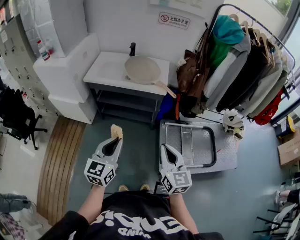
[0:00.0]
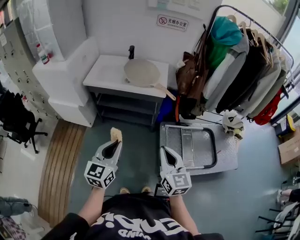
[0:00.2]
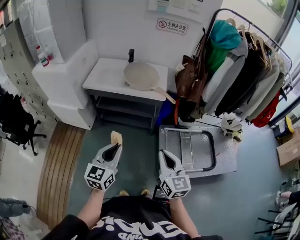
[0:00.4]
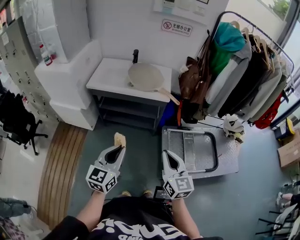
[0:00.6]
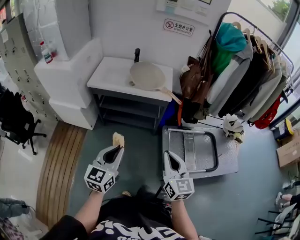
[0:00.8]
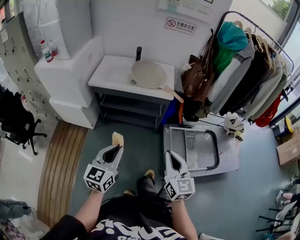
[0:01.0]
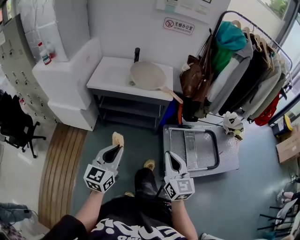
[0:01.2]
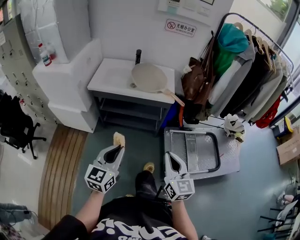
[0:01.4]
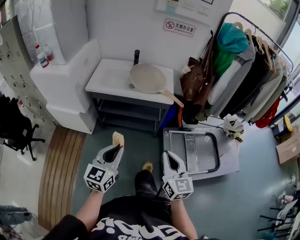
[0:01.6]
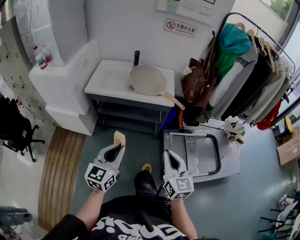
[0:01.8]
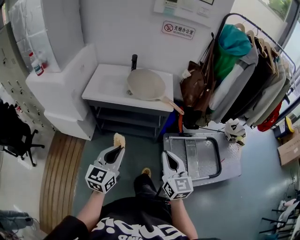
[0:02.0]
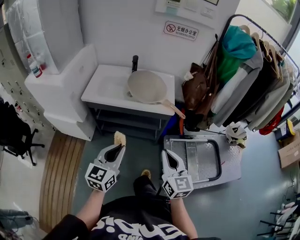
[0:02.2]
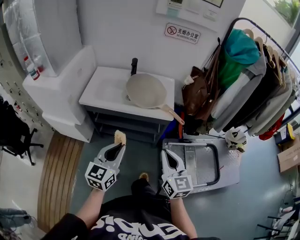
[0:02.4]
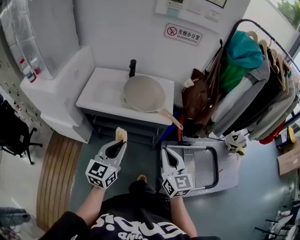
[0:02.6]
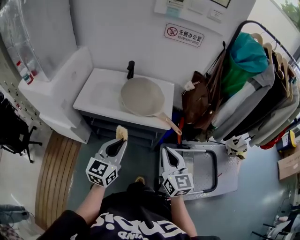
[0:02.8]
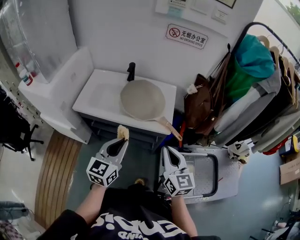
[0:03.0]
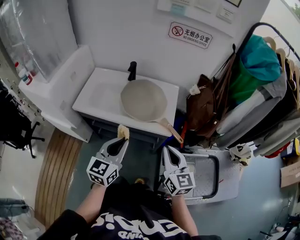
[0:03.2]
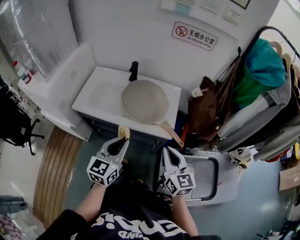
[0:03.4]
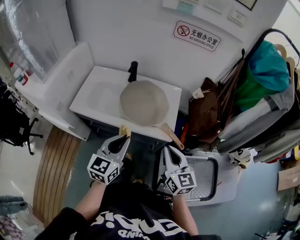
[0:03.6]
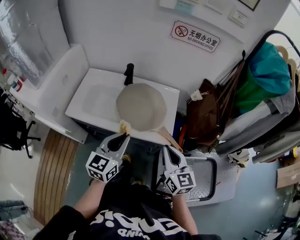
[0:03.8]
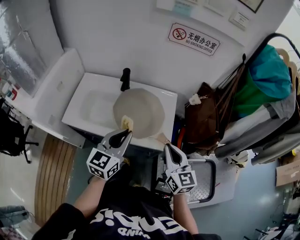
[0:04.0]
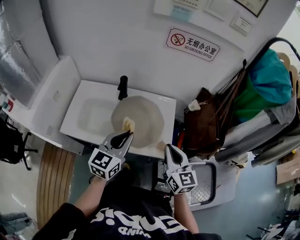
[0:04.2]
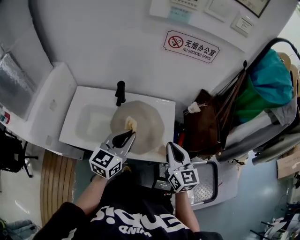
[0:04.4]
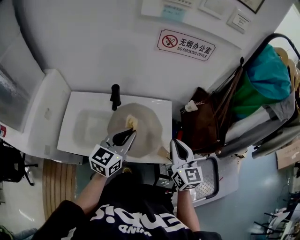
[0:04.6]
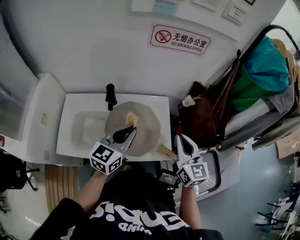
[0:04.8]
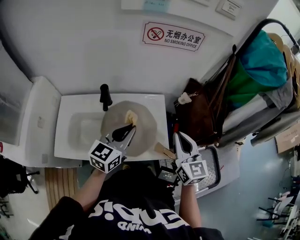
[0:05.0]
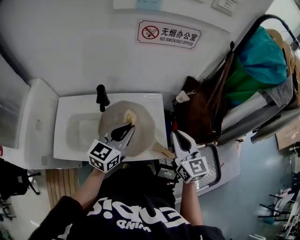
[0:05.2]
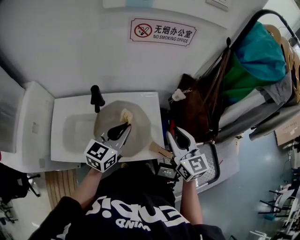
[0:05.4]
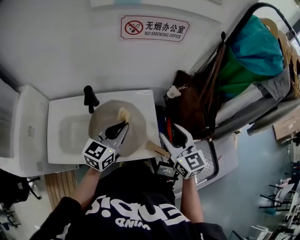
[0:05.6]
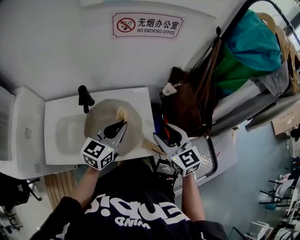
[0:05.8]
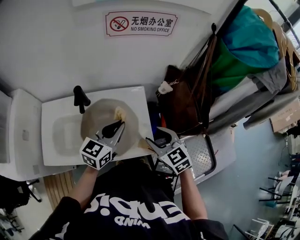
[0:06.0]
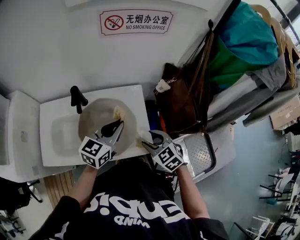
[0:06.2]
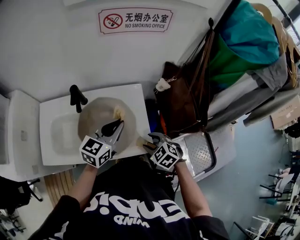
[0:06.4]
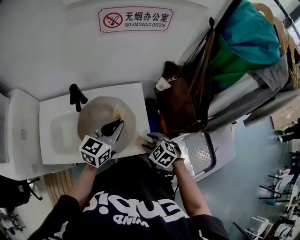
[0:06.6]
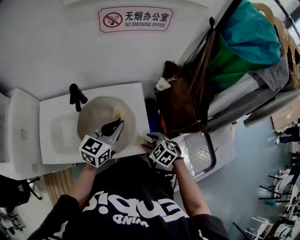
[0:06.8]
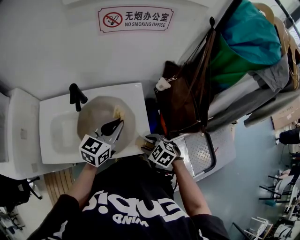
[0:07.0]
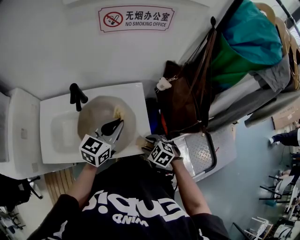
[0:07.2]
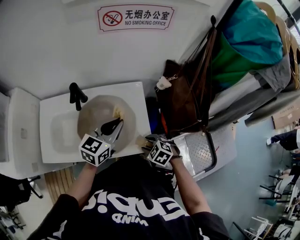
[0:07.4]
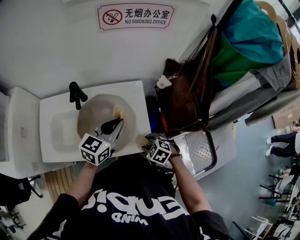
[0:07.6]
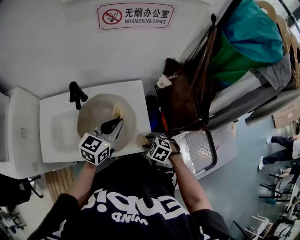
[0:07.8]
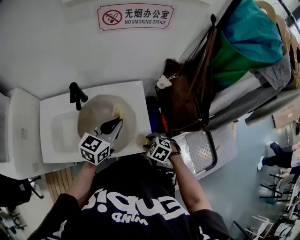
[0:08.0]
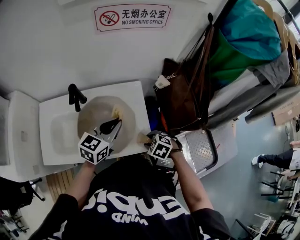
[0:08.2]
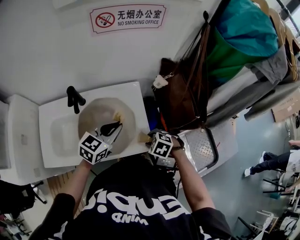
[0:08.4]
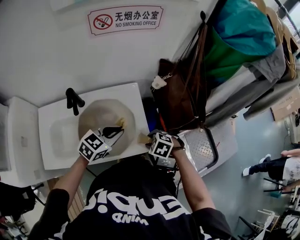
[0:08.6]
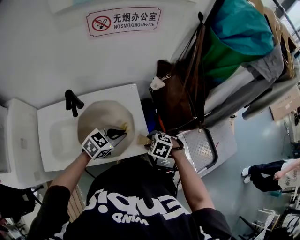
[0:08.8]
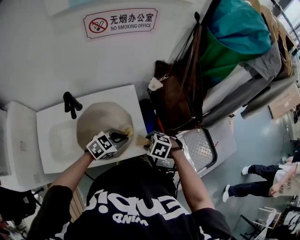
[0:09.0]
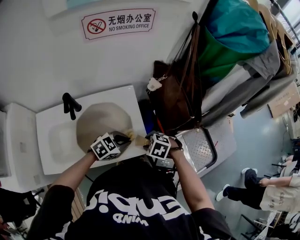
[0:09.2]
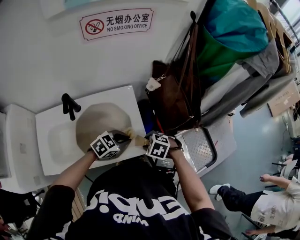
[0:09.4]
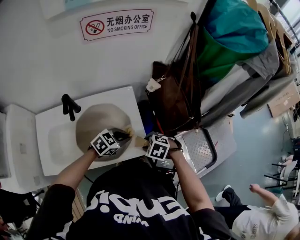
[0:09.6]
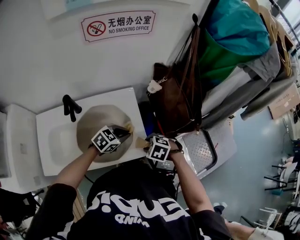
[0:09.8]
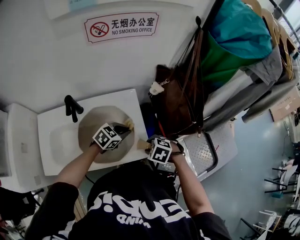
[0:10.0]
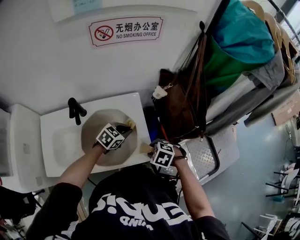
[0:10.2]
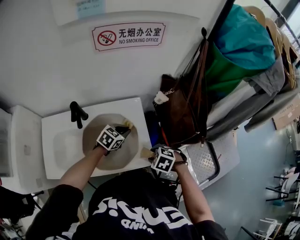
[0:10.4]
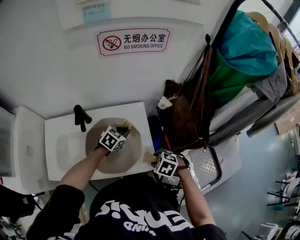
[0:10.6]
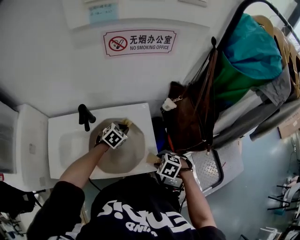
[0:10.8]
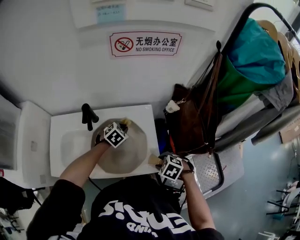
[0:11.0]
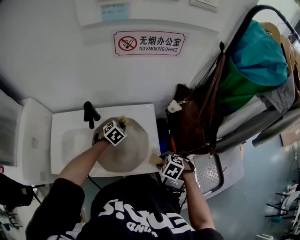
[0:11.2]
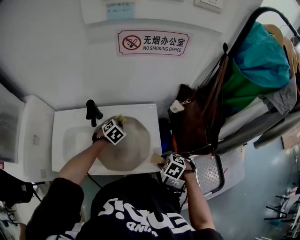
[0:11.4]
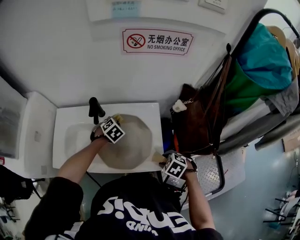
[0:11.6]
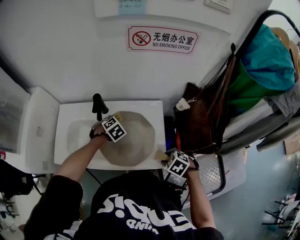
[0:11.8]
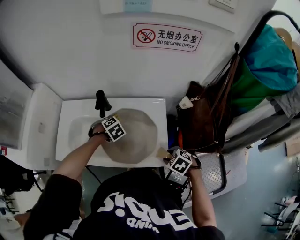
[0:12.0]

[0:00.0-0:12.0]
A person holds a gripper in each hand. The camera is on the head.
0:00.0 to 0:01.6: The two grippers go roughly 5 cm to the left.
0:01.6 to 0:03.0: Both grippers travel together forward, about 30 cm.
0:03.0 to 0:04.4: Both grippers move forward, roughly 25 cm.
0:04.4 to 0:06.0: The right gripper travels downward by roughly 5 cm, changes its angle by roughly 20 degrees, and opens. The left gripper goes about 10 cm forward and to the right.
0:06.0 to 0:07.6: The right gripper shifts about 20 cm downward, and tips its fingers downward by some 30 degrees.
0:07.6 to 0:09.0: The left gripper moves downward, about 10 cm, and turns by approximately 40 degrees.
0:09.0 to 0:10.4: The left gripper moves about 10 cm.
0:10.4 to 0:12.0: The left gripper shifts by some 15 cm, and turns by approximately 40 degrees.

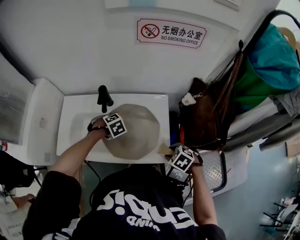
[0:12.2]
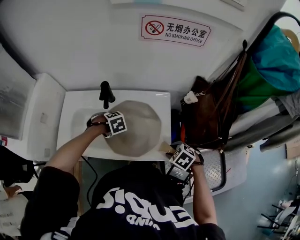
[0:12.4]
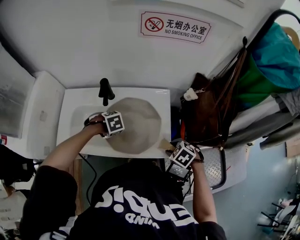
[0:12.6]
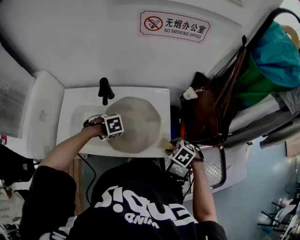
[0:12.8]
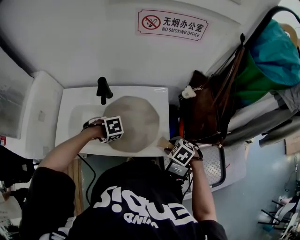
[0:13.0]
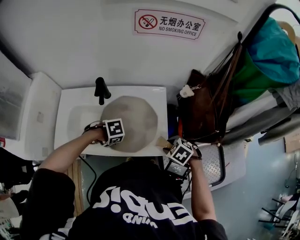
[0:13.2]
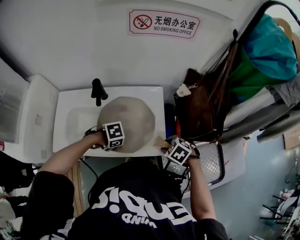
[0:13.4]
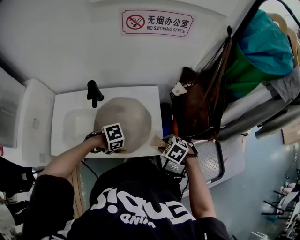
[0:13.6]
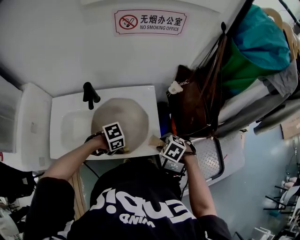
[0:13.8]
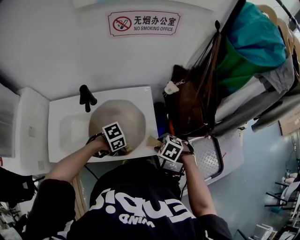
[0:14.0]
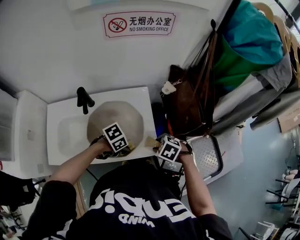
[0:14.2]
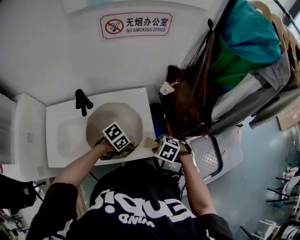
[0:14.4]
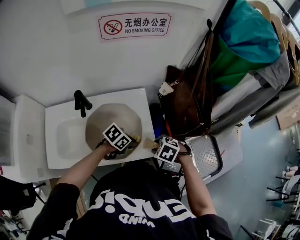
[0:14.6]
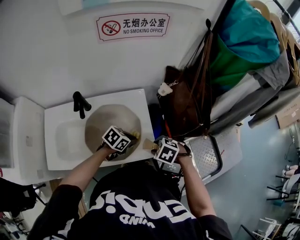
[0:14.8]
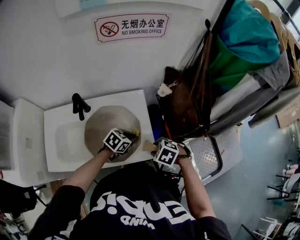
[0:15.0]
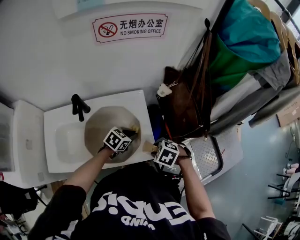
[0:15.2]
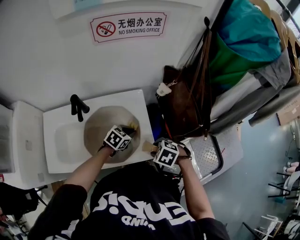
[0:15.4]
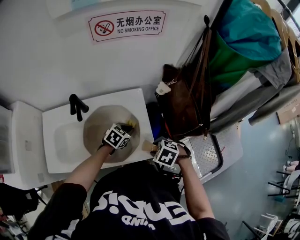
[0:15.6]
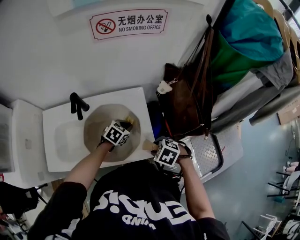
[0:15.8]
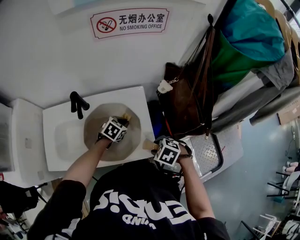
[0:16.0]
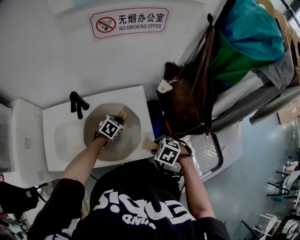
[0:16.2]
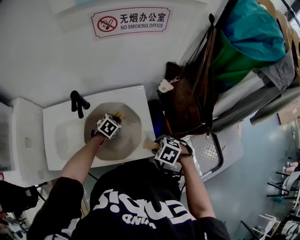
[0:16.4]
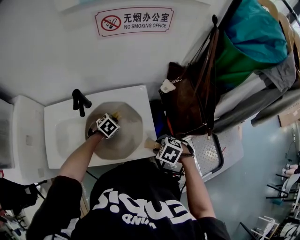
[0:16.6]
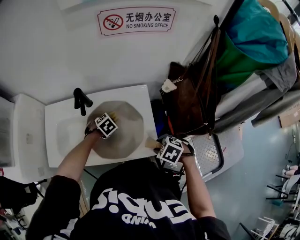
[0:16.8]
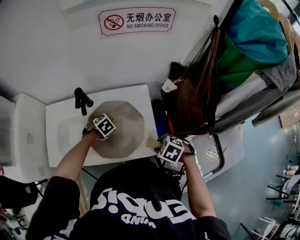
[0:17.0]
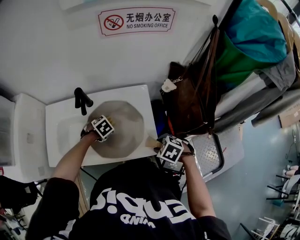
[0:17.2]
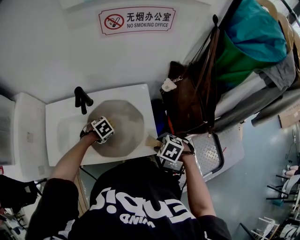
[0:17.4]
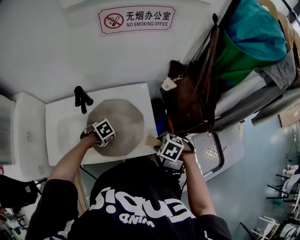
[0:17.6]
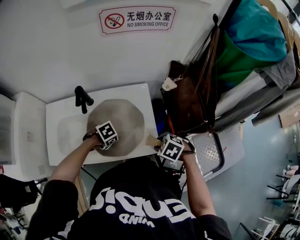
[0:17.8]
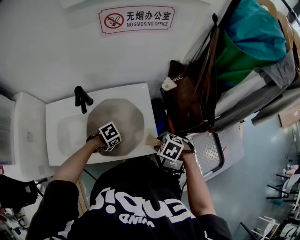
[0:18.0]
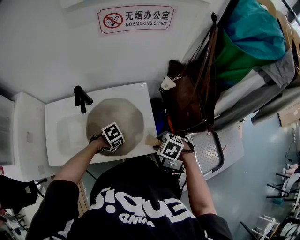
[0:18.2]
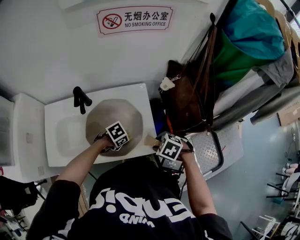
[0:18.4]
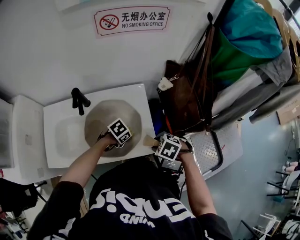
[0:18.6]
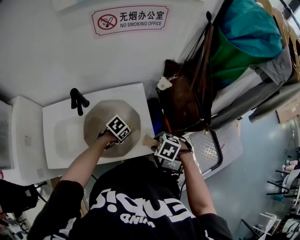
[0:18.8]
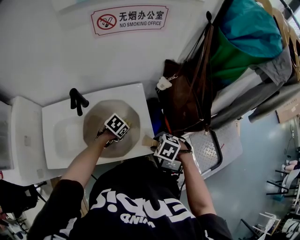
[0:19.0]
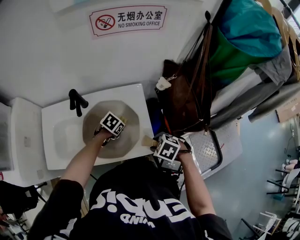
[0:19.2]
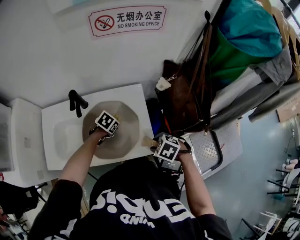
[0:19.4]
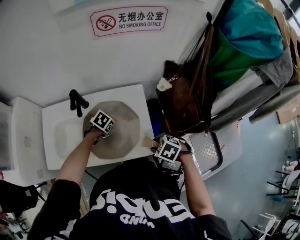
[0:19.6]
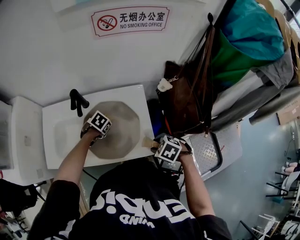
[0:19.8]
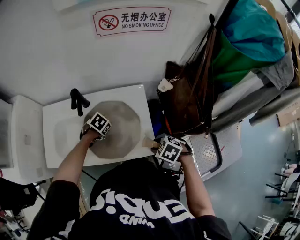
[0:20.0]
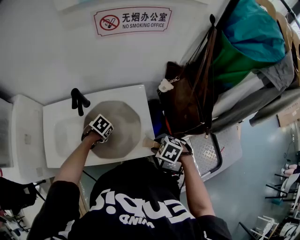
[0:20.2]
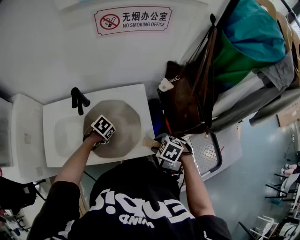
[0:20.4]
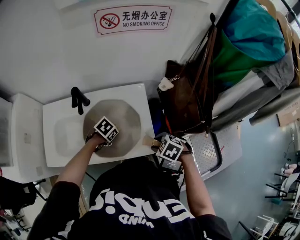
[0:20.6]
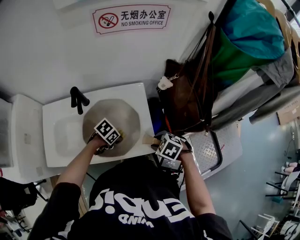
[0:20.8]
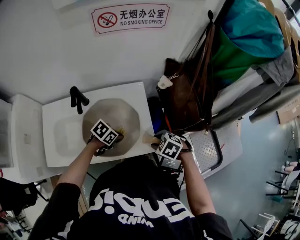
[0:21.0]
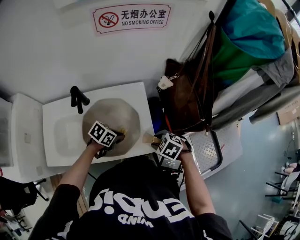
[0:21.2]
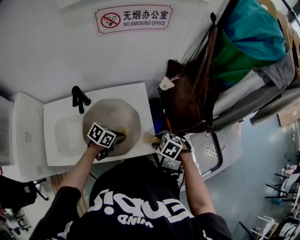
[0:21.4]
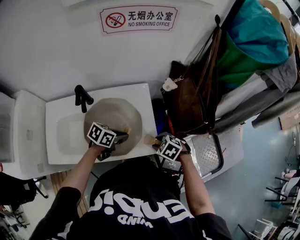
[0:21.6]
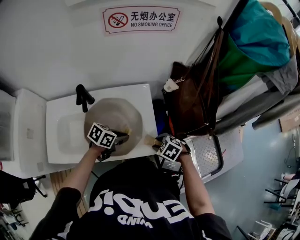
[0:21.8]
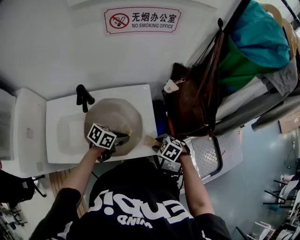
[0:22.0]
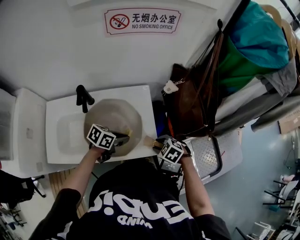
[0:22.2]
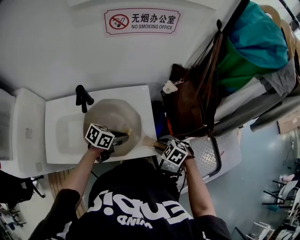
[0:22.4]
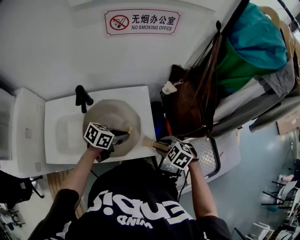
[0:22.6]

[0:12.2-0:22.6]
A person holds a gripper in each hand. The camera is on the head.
0:12.2 to 0:13.6: The left gripper shifts by roughly 20 cm, and changes its angle by roughly 40 degrees.
0:13.6 to 0:15.2: The left gripper ends up approximately 20 cm from where it was, and swivels approximately 50 degrees.
0:15.2 to 0:16.6: The left gripper shifts by about 15 cm, and rotates roughly 30 degrees.
0:16.6 to 0:18.2: The left gripper ends up about 15 cm from where it was, and swivels about 30 degrees.
0:18.2 to 0:19.6: The left gripper moves roughly 15 cm, and turns by approximately 30 degrees.
0:19.6 to 0:21.2: The left gripper changes place by about 10 cm, and changes its angle by some 30 degrees.
0:21.2 to 0:22.6: The left gripper goes about 10 cm upward.

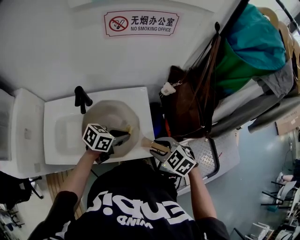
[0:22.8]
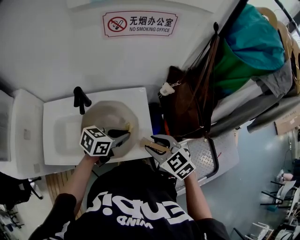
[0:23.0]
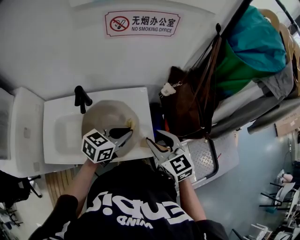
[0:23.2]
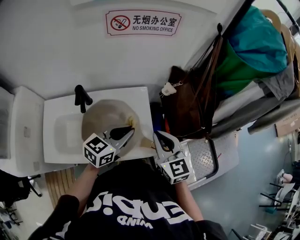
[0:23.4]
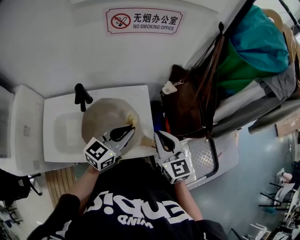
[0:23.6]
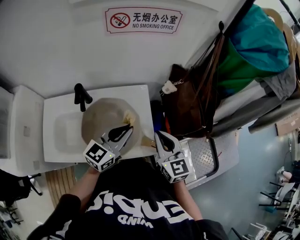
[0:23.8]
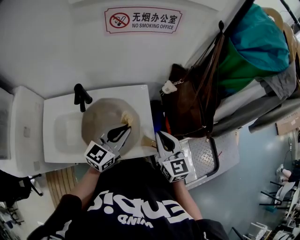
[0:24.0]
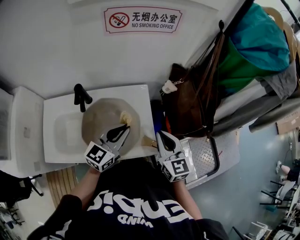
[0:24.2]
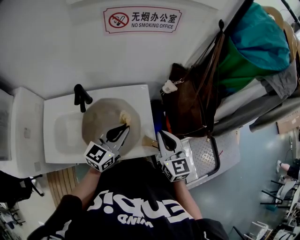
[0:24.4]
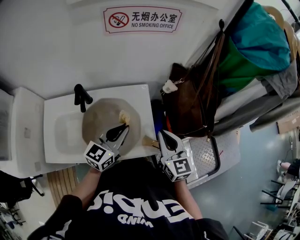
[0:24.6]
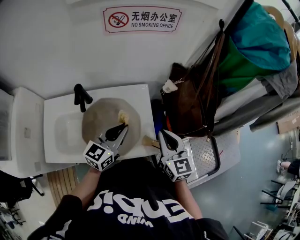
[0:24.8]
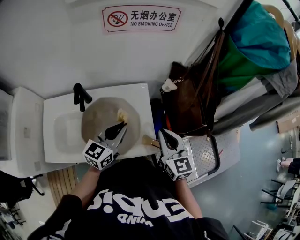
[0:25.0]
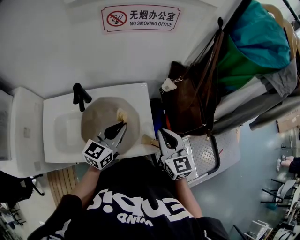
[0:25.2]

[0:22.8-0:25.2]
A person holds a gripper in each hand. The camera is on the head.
0:22.8 to 0:24.0: The two grippers go some 5 cm upward. The right gripper angles its fingers upward, by roughly 40 degrees, and closes up; the left gripper swivels approximately 40 degrees.
0:24.0 to 0:25.2: The grippers make only small movements.
